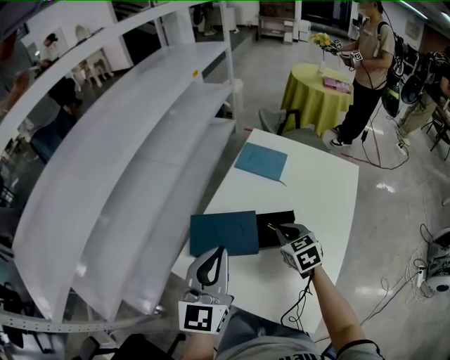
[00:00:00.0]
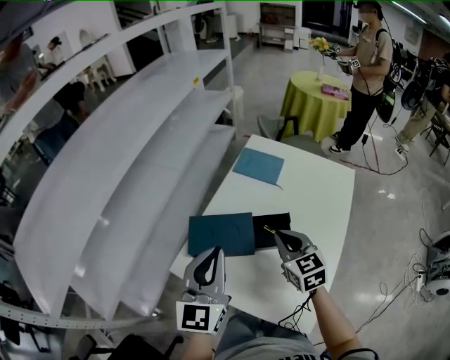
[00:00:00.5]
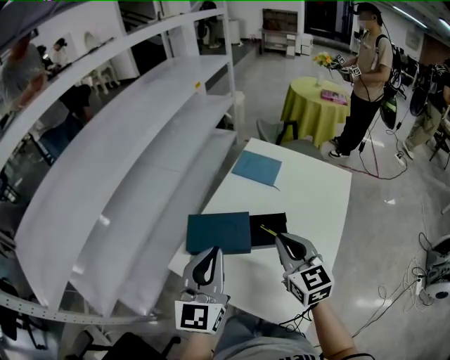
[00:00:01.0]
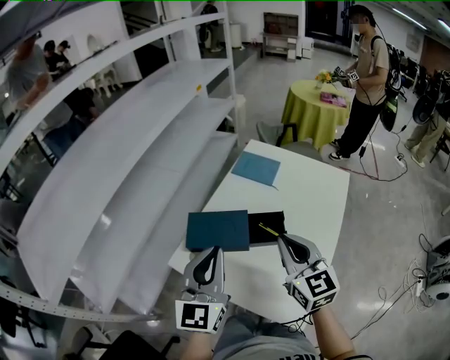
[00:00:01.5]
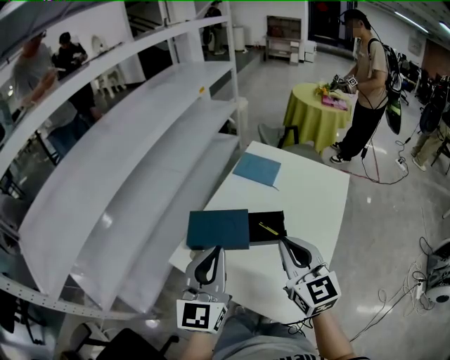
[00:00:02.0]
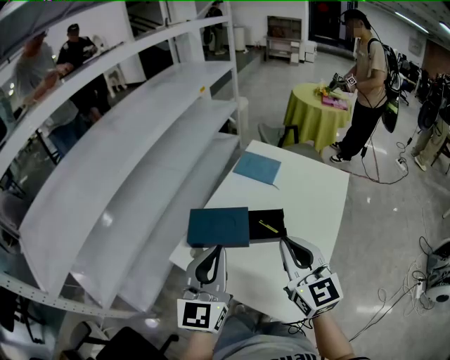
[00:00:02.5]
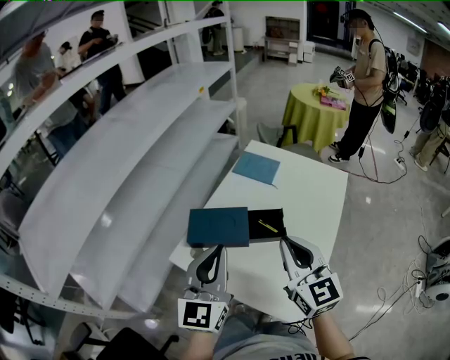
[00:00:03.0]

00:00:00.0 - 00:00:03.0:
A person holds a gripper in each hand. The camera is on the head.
00:00:00.0 - 00:00:01.5: The right gripper goes about 20 cm upward and backward, and tilts its fingers some 30 degrees upward. Meanwhile the left gripper heads backward, covering about 5 cm.
00:00:01.5 - 00:00:03.0: There are only small adjustments of the grippers.

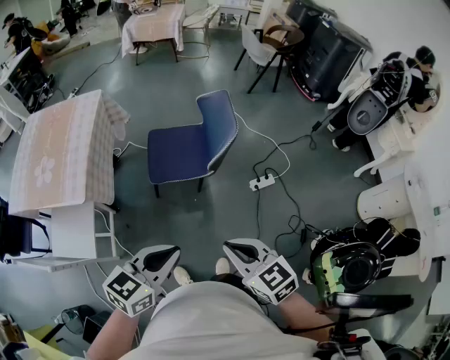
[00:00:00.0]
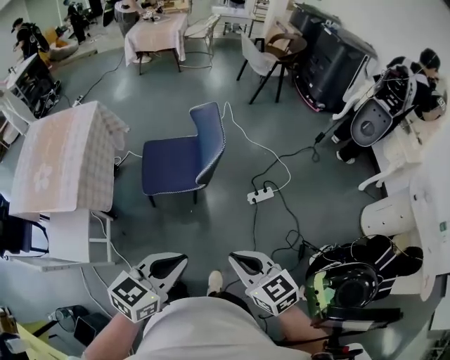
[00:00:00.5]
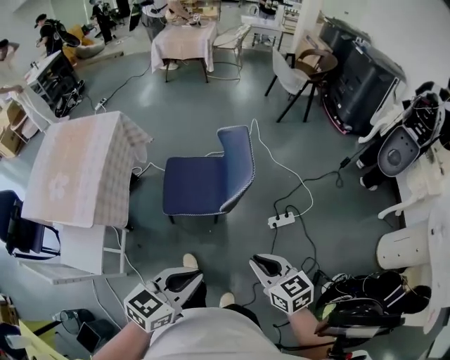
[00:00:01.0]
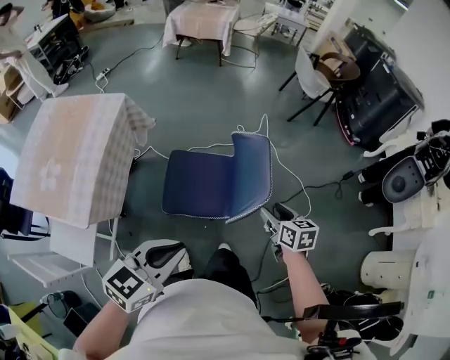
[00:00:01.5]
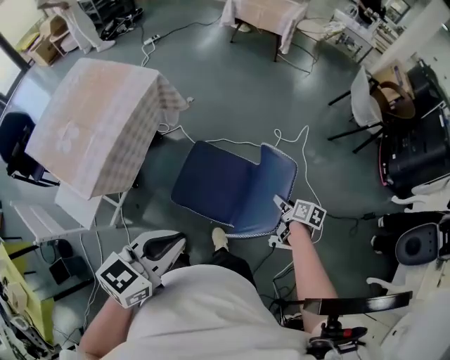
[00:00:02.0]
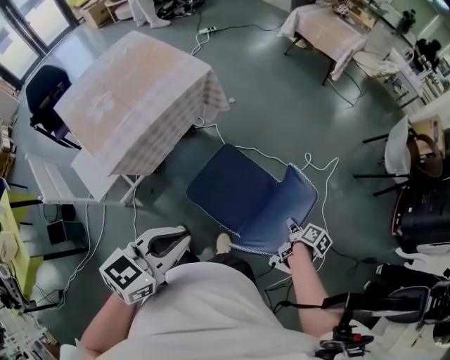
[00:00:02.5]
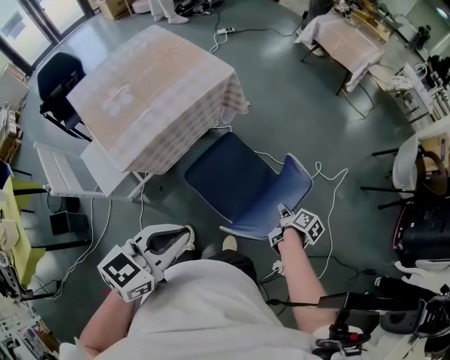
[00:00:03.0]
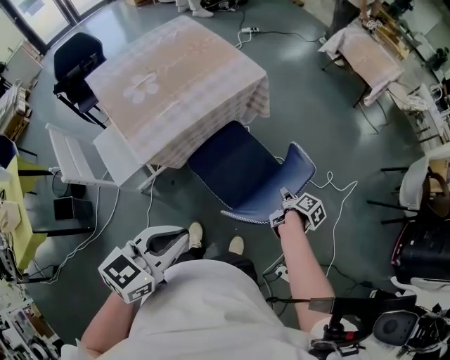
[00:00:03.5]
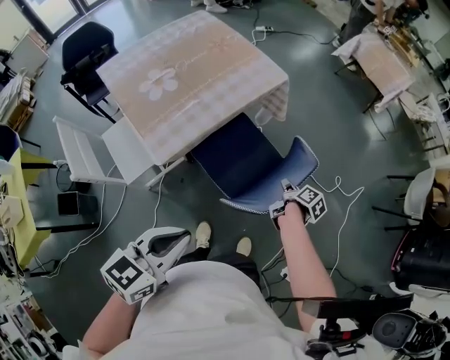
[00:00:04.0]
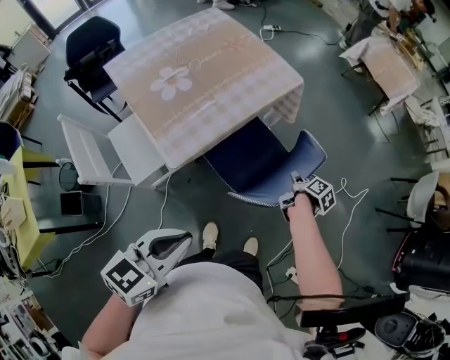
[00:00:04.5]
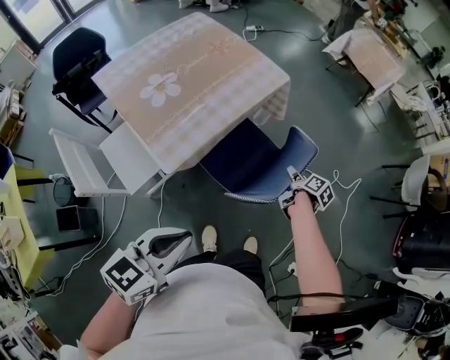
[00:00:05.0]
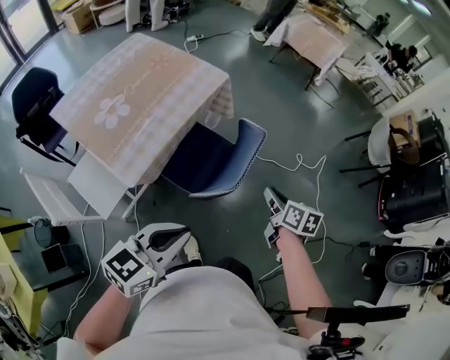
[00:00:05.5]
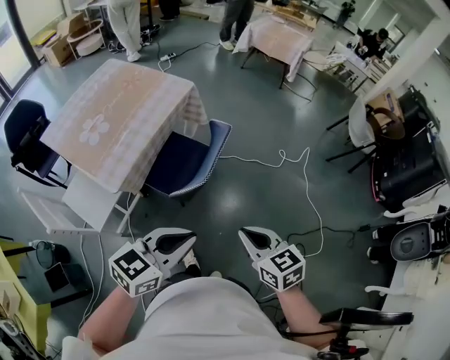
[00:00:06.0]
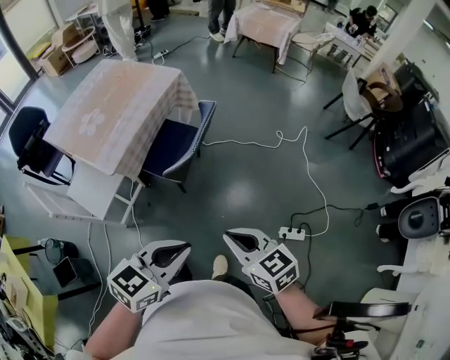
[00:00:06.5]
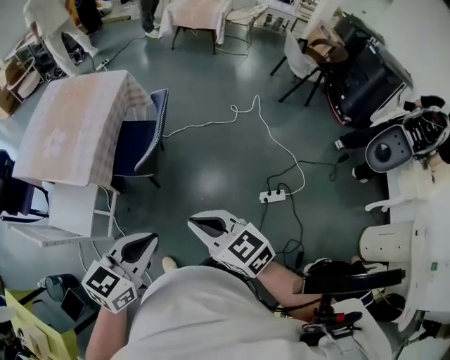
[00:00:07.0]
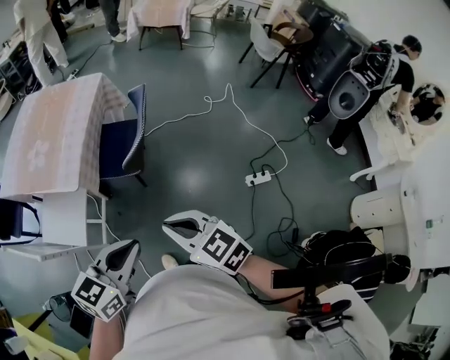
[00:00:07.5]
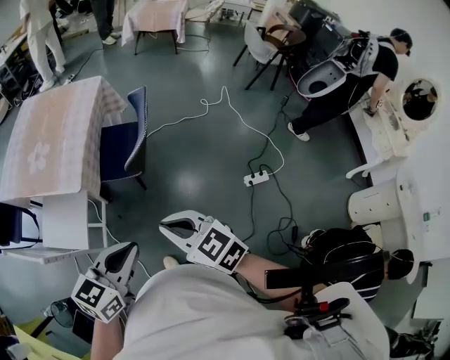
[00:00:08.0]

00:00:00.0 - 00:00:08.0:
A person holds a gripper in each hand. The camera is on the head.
00:00:00.0 - 00:00:02.0: The right gripper is displaced forward and downward by about 60 cm, twists about 40 degrees clockwise, seen from behind, and opens; the left gripper goes roughly 35 cm forward, and swivels about 30 degrees.
00:00:02.0 - 00:00:04.0: The grippers both shift to the left by roughly 30 cm. The right gripper closes. The left gripper rotates approximately 30 degrees.
00:00:04.0 - 00:00:06.0: The left gripper shifts about 10 cm to the right, and swivels some 30 degrees. Meanwhile the right gripper heads backward and upward, covering some 35 cm, rolls counterclockwise, seen from behind, by approximately 60 degrees, and opens, then closes again.
00:00:06.0 - 00:00:08.0: The grippers both shift backward and to the left by roughly 25 cm.

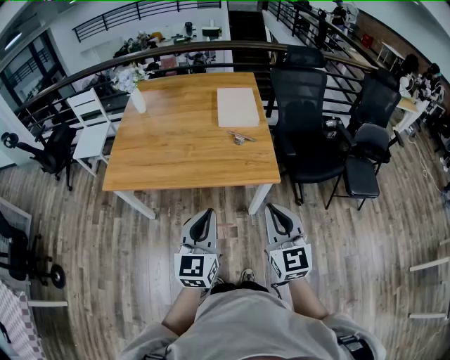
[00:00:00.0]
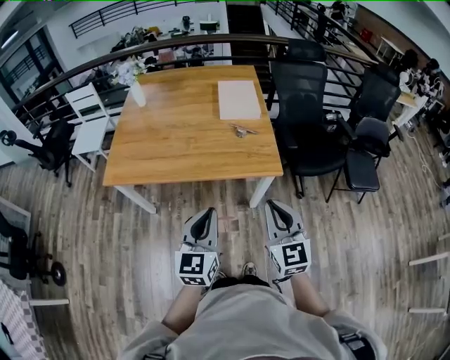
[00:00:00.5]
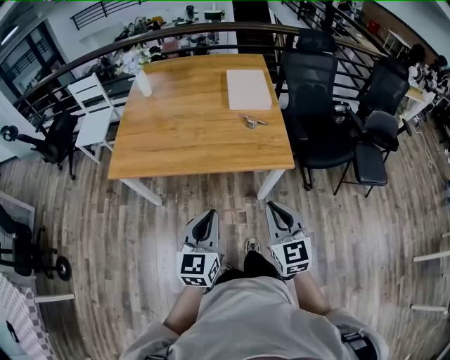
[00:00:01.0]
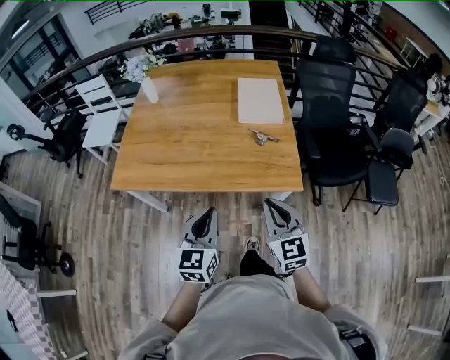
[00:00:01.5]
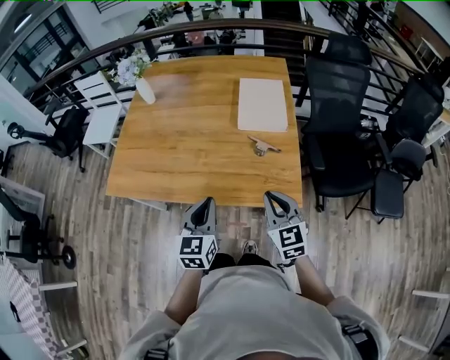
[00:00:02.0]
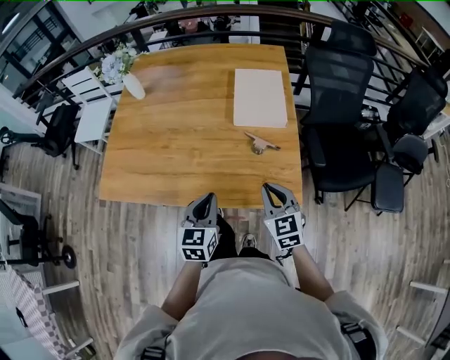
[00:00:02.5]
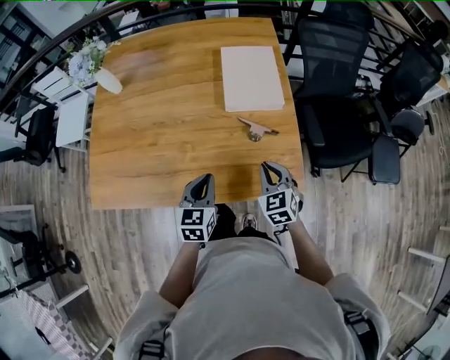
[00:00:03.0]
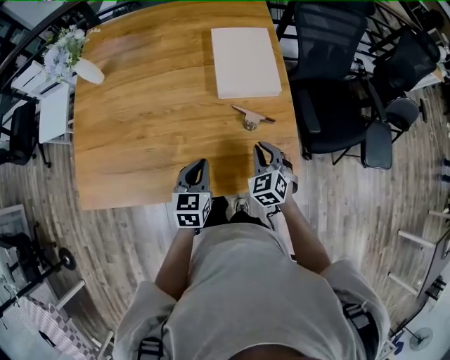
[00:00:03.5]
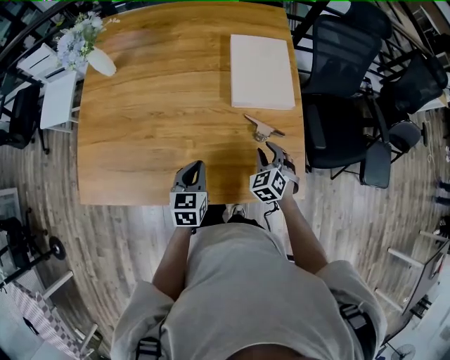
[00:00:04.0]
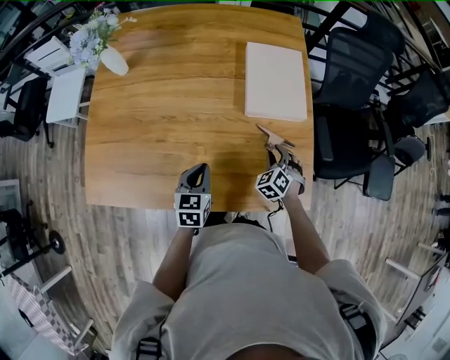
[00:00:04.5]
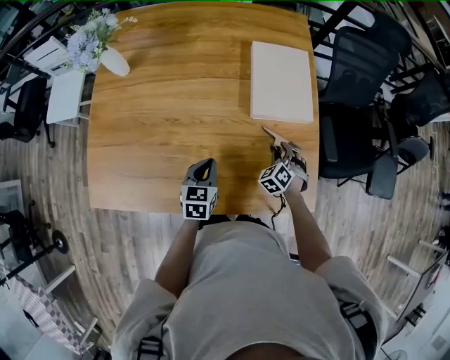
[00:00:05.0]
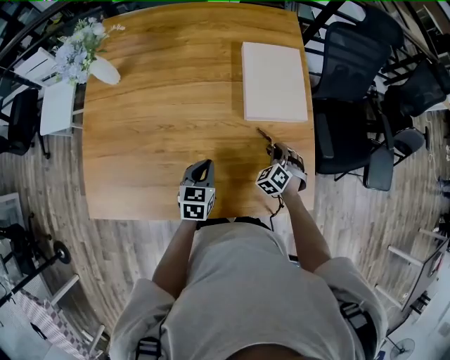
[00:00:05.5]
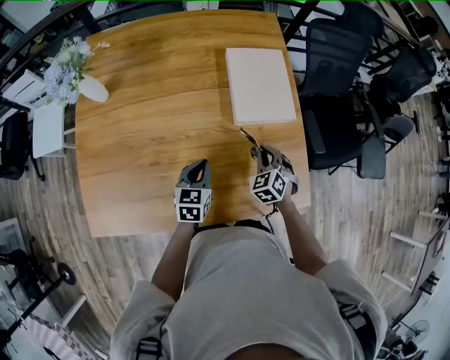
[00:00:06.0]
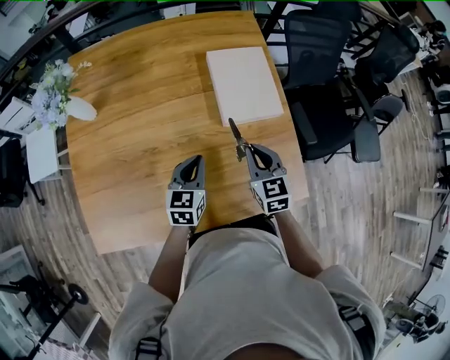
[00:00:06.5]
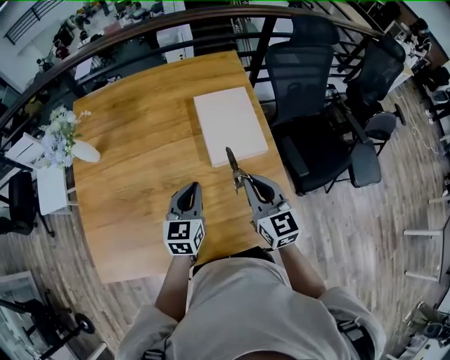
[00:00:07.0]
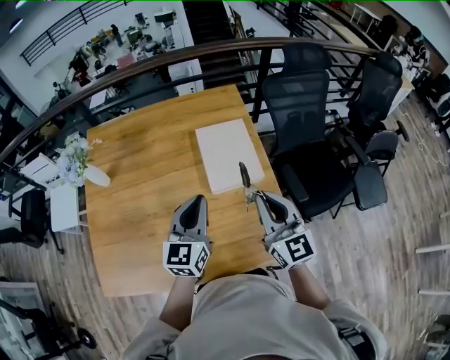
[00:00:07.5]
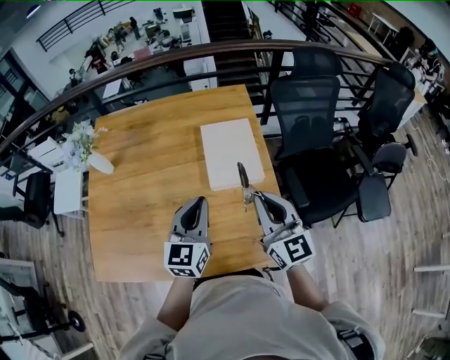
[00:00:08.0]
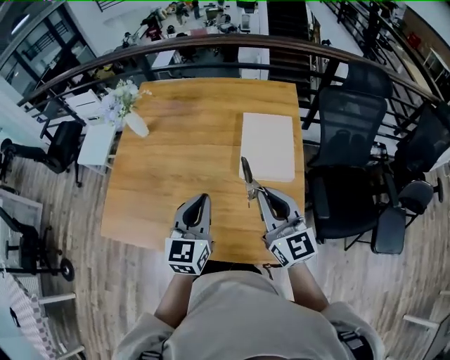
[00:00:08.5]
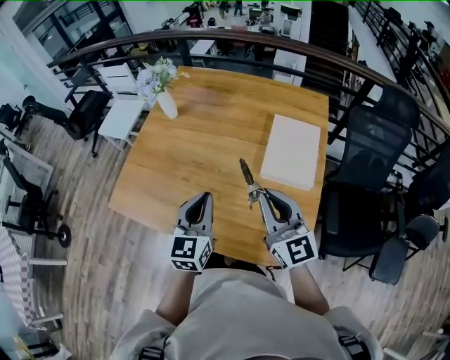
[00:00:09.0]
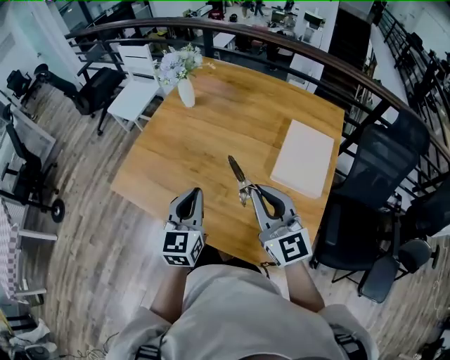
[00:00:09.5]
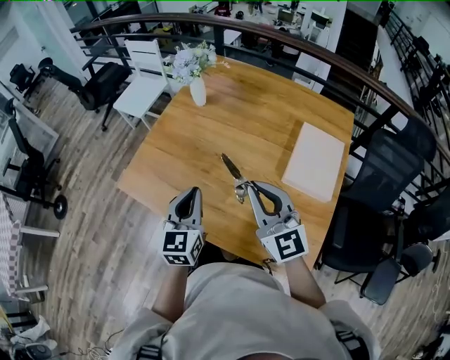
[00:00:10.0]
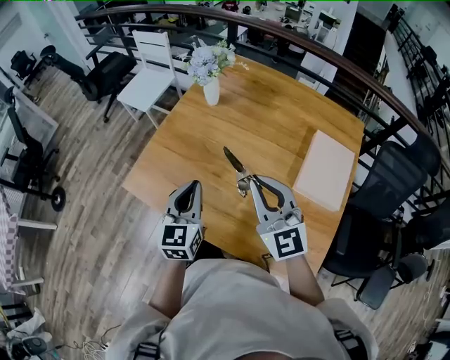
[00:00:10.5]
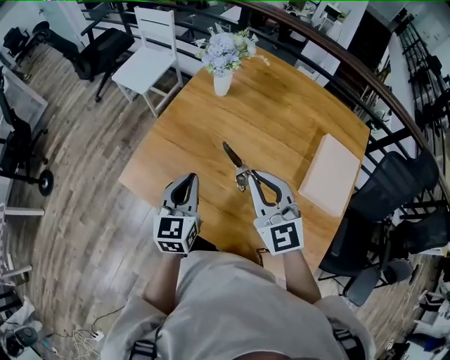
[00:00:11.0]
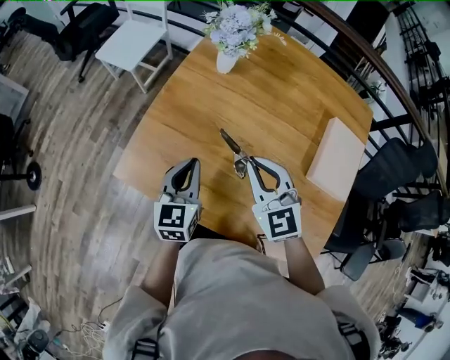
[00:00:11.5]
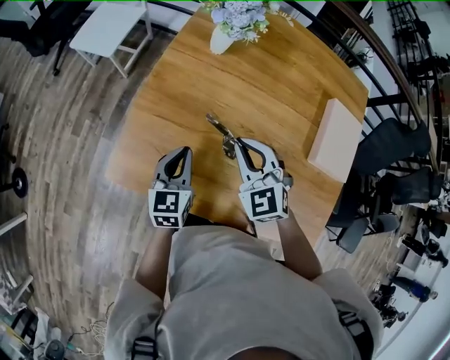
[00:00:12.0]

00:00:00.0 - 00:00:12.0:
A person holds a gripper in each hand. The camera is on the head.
00:00:00.0 - 00:00:02.0: The grippers both shift forward and downward by about 25 cm.
00:00:02.0 - 00:00:04.0: Both grippers travel together forward and downward, some 25 cm. The right gripper changes its angle by roughly 40 degrees, and opens up.
00:00:04.0 - 00:00:06.0: The right gripper reaches about 5 cm downward, then returns, and closes its fingers, while the left gripper moves forward, roughly 10 cm.
00:00:06.0 - 00:00:08.0: The left gripper moves upward and to the right, about 25 cm, and changes its angle by about 30 degrees; the right gripper shifts about 30 cm upward, and tilts its fingers some 50 degrees upward.
00:00:08.0 - 00:00:10.0: The left gripper ends up some 25 cm from where it was, and rotates some 40 degrees, while the right gripper changes place by approximately 25 cm, and swivels roughly 40 degrees.
00:00:10.0 - 00:00:12.0: Both grippers travel together forward, downward and to the left, approximately 30 cm. The right gripper points its fingers about 30 degrees further downward.

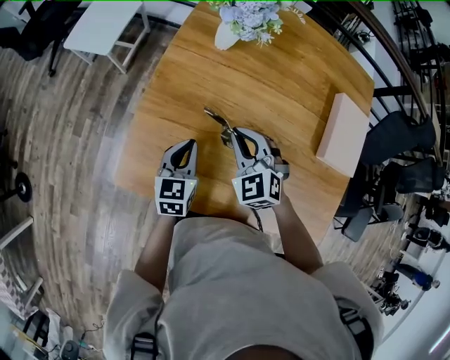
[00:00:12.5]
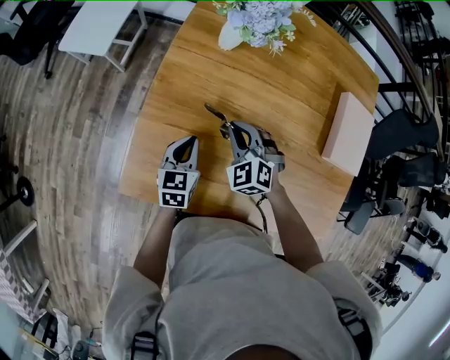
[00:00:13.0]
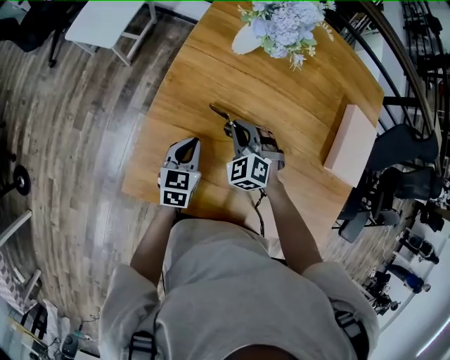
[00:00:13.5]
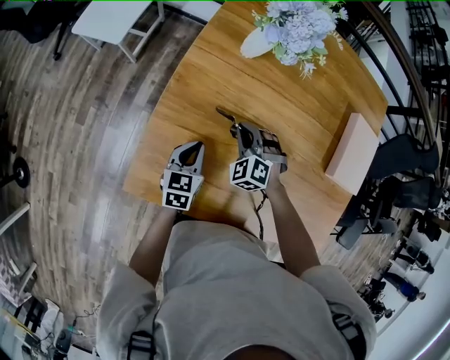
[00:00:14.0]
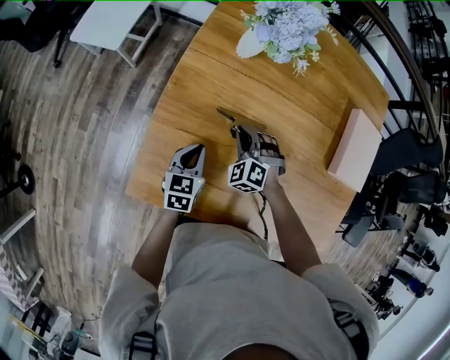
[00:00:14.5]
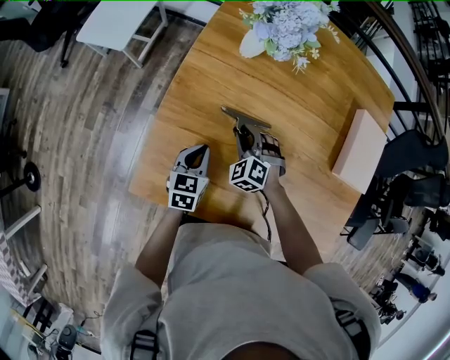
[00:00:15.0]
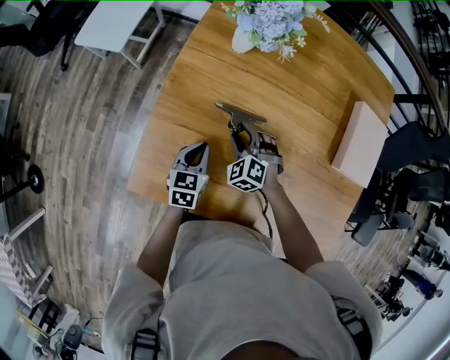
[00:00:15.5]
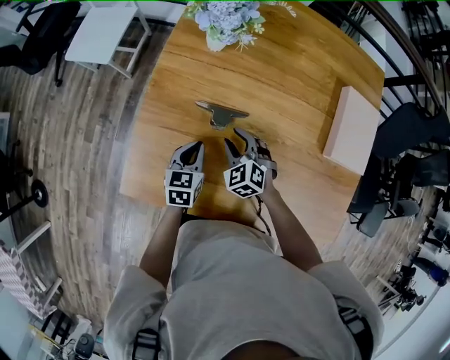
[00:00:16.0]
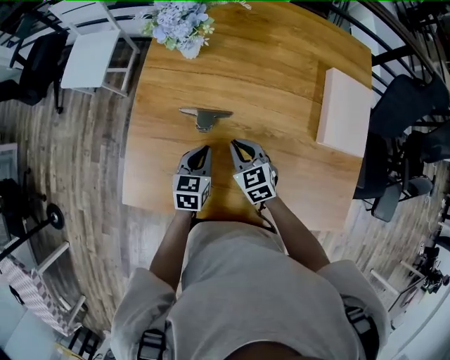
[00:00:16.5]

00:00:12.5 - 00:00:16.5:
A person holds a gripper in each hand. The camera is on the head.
00:00:12.5 - 00:00:14.5: The left gripper is displaced downward by about 5 cm, while the right gripper shifts approximately 15 cm downward, and swivels some 20 degrees.
00:00:14.5 - 00:00:16.5: The right gripper travels to the right, backward and upward by some 15 cm, rolls clockwise, seen from behind, by some 50 degrees, and opens and closes again; the left gripper is displaced to the right by about 10 cm.
